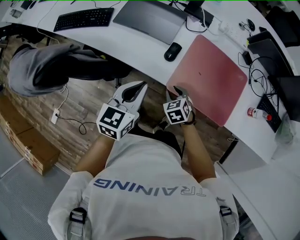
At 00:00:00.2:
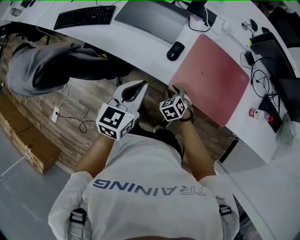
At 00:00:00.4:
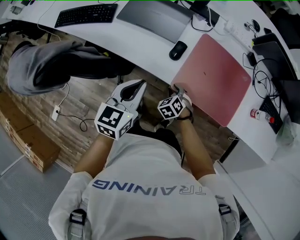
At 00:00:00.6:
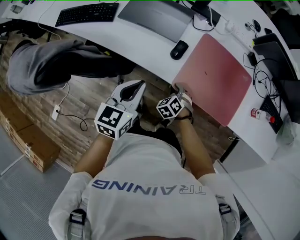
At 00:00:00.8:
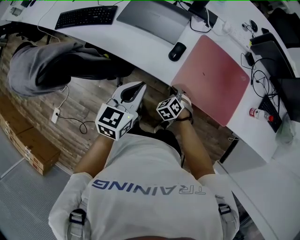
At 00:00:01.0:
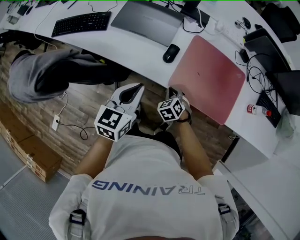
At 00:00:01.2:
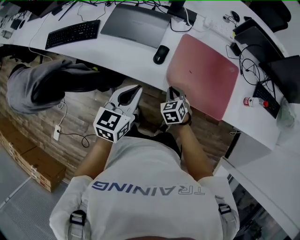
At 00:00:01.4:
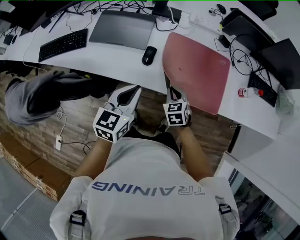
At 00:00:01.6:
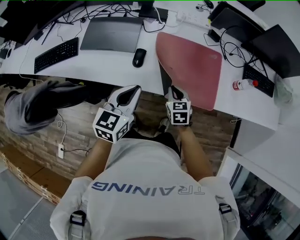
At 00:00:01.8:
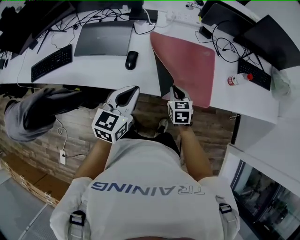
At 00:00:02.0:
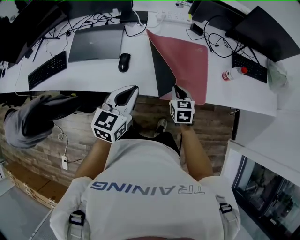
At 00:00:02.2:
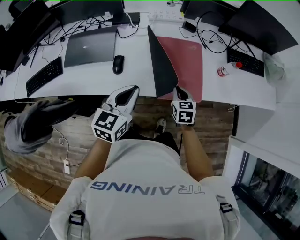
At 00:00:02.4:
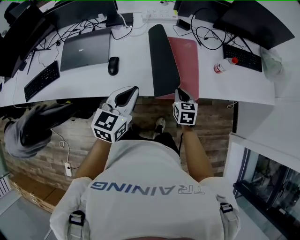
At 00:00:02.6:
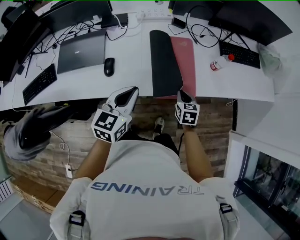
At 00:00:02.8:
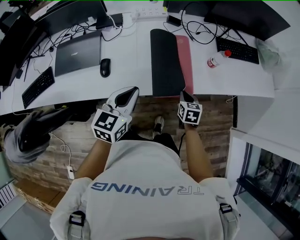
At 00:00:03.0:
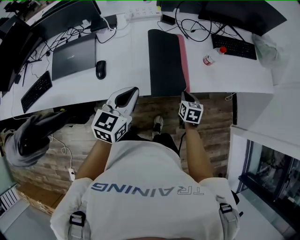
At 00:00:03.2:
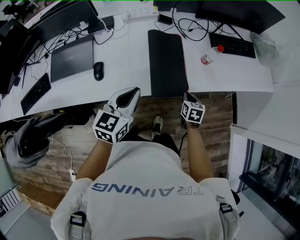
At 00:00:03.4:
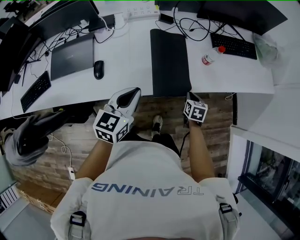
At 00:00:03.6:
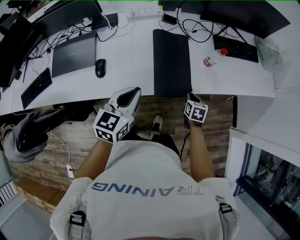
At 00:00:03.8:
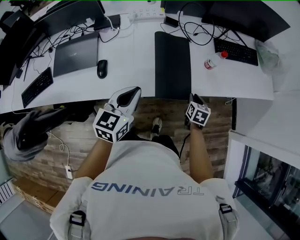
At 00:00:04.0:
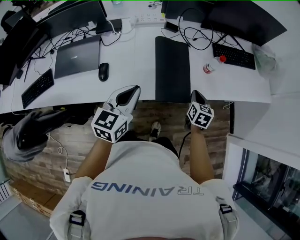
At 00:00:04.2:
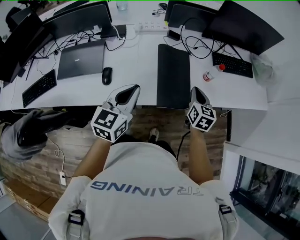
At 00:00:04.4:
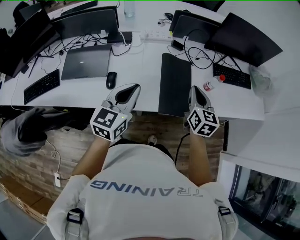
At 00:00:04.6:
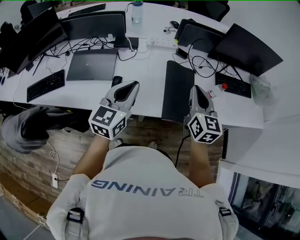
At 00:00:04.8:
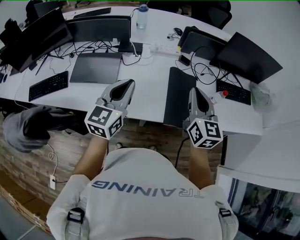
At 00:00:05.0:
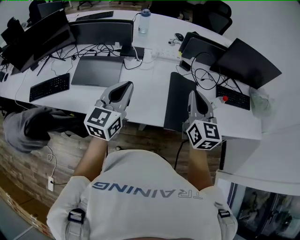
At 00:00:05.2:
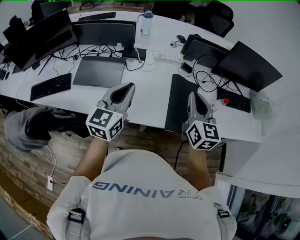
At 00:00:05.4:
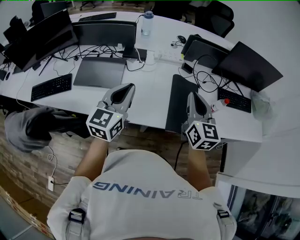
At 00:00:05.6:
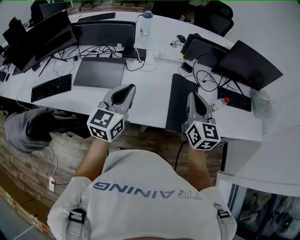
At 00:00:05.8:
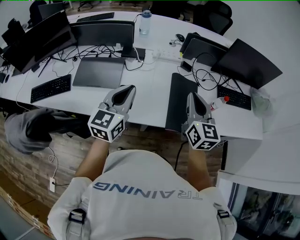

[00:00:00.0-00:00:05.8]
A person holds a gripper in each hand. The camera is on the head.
00:00:00.0 to 00:00:01.4: The two grippers go approximately 5 cm to the right. The right gripper rotates roughly 20 degrees, and closes.
00:00:01.4 to 00:00:02.8: The left gripper travels to the right by some 20 cm, while the right gripper is displaced to the right by some 30 cm, and turns by about 40 degrees.
00:00:02.8 to 00:00:04.4: The left gripper goes approximately 10 cm upward; the right gripper is displaced upward by about 20 cm, and changes its angle by roughly 30 degrees.
00:00:04.4 to 00:00:05.8: The left gripper is displaced to the left by approximately 10 cm. The right gripper goes about 15 cm to the left and upward.

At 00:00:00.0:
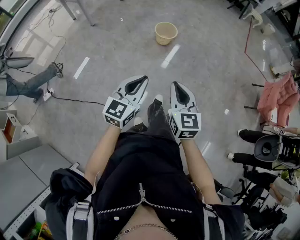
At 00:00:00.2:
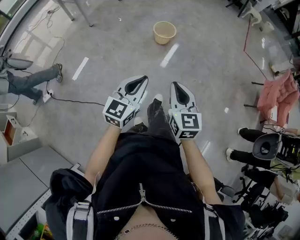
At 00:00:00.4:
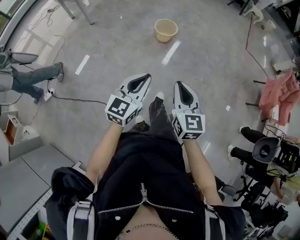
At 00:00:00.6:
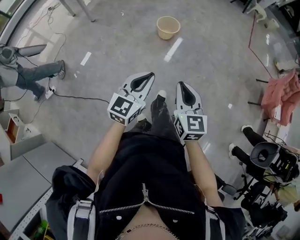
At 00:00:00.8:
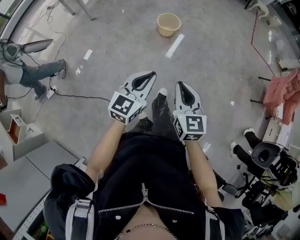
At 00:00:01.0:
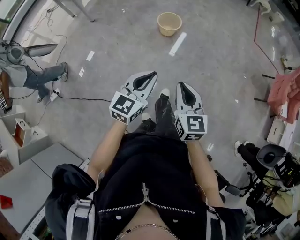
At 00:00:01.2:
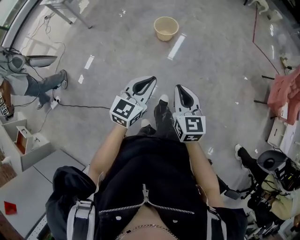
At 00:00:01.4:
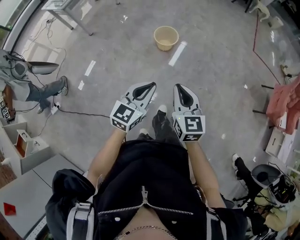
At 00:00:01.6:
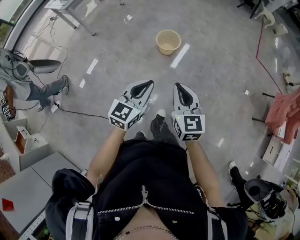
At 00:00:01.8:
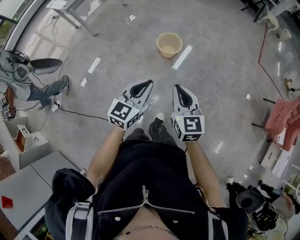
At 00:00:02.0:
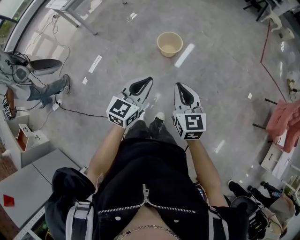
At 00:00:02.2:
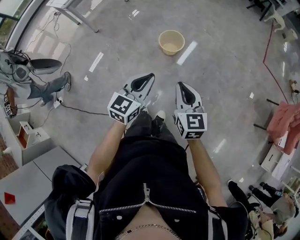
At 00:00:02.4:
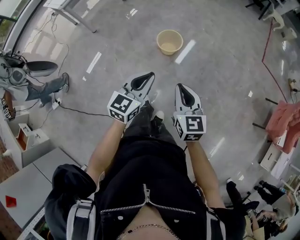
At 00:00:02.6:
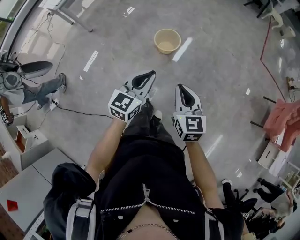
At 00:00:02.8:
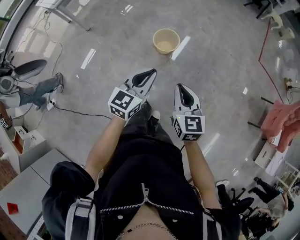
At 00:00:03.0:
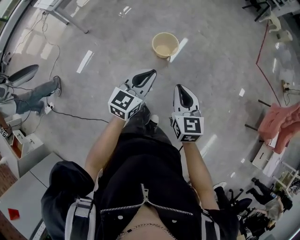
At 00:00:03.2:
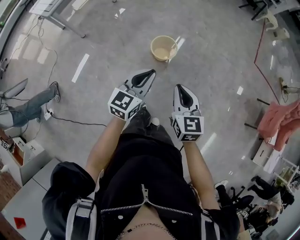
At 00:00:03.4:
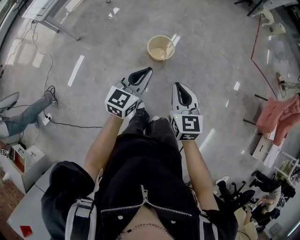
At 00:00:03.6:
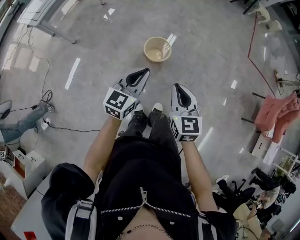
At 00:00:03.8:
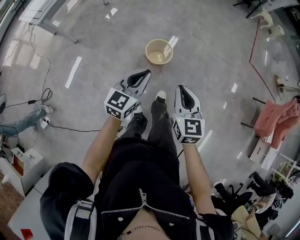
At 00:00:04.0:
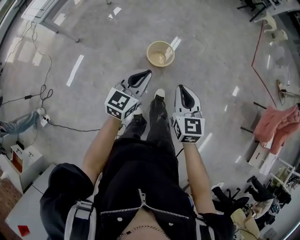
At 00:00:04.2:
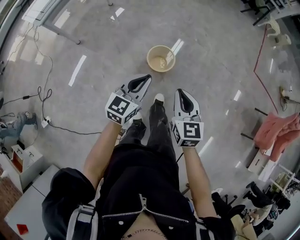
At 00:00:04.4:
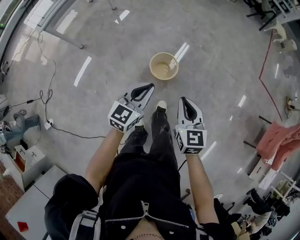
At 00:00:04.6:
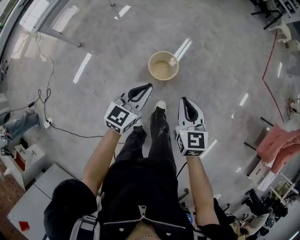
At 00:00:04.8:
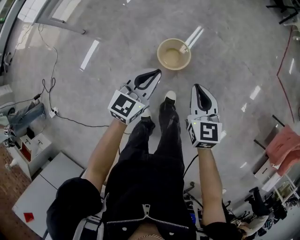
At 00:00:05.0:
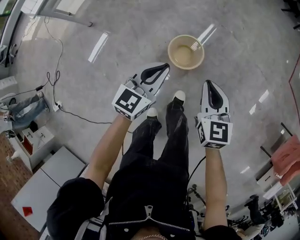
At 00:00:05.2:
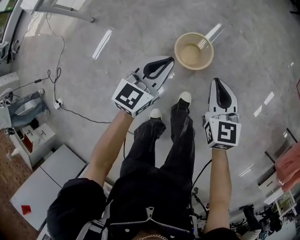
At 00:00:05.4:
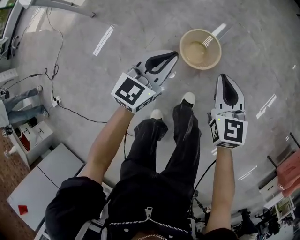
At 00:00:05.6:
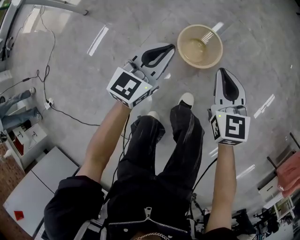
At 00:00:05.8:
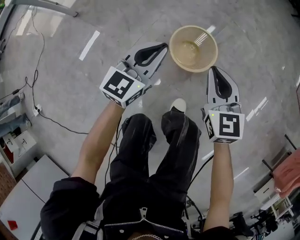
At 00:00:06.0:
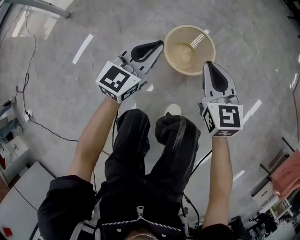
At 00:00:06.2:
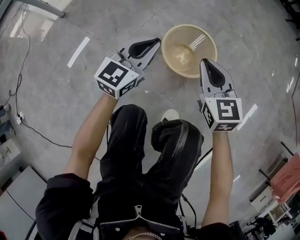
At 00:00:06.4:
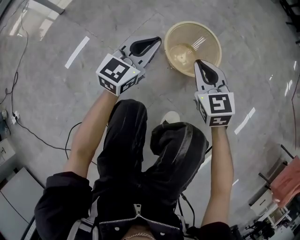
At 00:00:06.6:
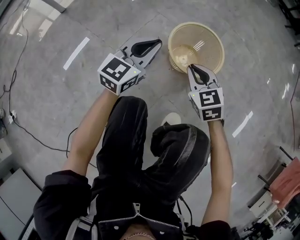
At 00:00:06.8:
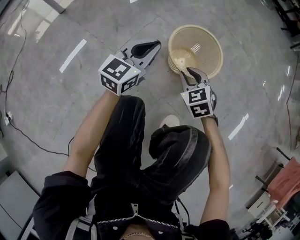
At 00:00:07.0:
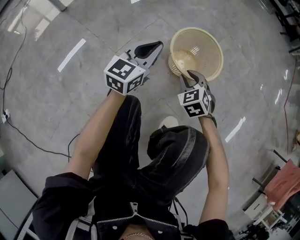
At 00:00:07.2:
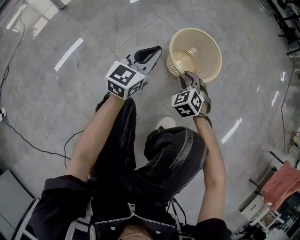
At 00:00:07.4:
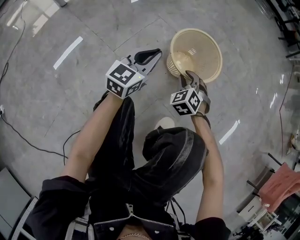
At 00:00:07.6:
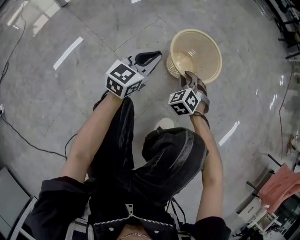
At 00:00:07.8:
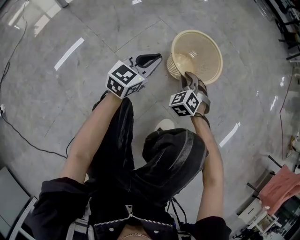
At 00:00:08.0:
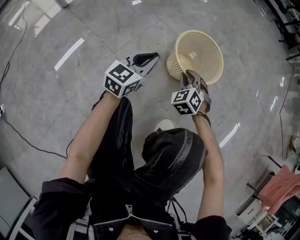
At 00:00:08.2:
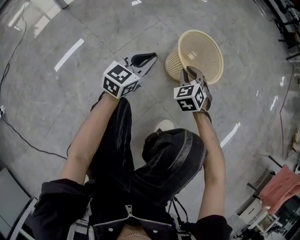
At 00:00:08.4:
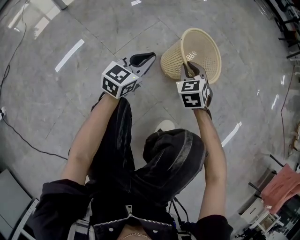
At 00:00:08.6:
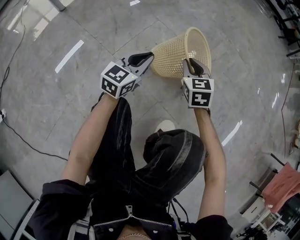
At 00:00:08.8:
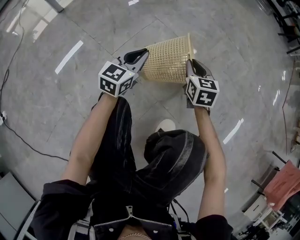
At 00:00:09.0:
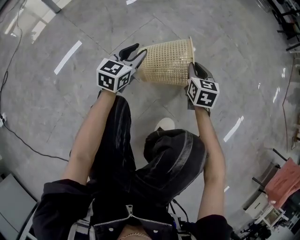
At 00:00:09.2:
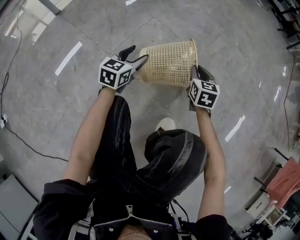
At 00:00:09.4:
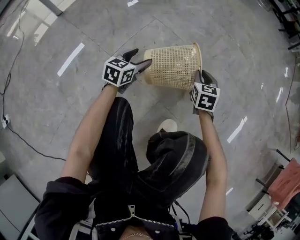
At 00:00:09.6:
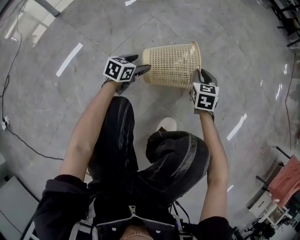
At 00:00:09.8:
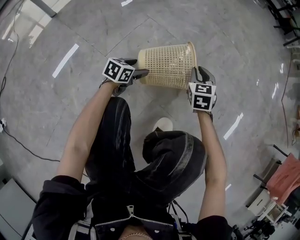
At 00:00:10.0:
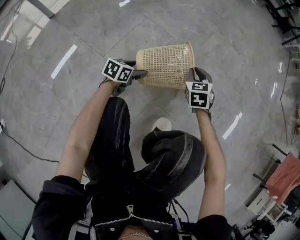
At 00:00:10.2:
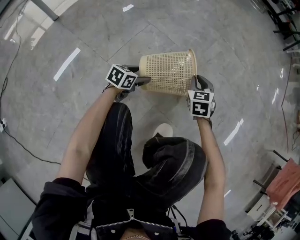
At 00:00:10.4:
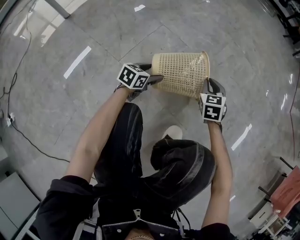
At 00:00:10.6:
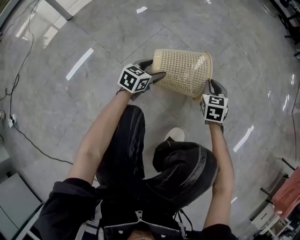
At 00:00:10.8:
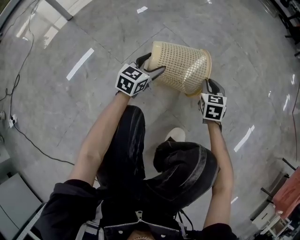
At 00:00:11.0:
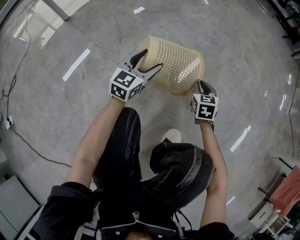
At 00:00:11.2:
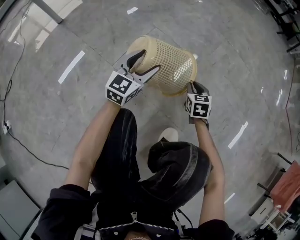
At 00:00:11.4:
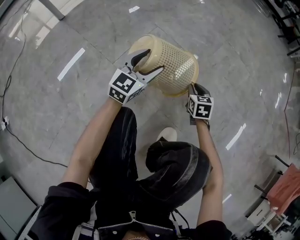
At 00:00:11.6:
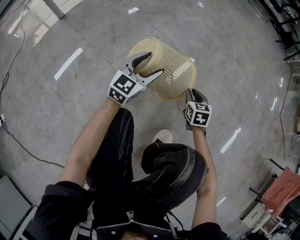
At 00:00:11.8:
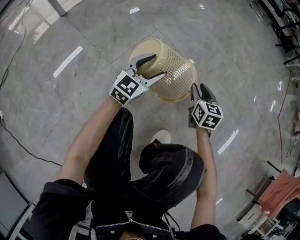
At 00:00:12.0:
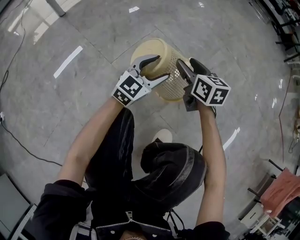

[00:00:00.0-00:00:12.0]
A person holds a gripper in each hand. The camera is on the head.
00:00:00.0 to 00:00:01.6: The two grippers go roughly 25 cm forward.
00:00:01.6 to 00:00:03.0: The grippers both shift forward by about 20 cm.
00:00:03.0 to 00:00:04.4: The two grippers go approximately 20 cm forward.
00:00:04.4 to 00:00:06.0: Both grippers move downward, approximately 40 cm.
00:00:06.0 to 00:00:07.6: The right gripper goes some 30 cm downward, and twists approximately 50 degrees counterclockwise, seen from behind. The left gripper moves downward, about 20 cm.
00:00:07.6 to 00:00:09.0: The right gripper is displaced forward by some 5 cm, and rolls clockwise, seen from behind, by roughly 50 degrees. The left gripper changes place by about 5 cm, and opens up.
00:00:09.0 to 00:00:10.4: The right gripper travels to the right by roughly 5 cm. Meanwhile the left gripper shifts some 15 cm downward and to the right, rotates about 30 degrees, and opens.
00:00:10.4 to 00:00:12.0: The right gripper goes some 15 cm to the left and upward, swivels some 40 degrees, and opens, while the left gripper heads upward, covering about 15 cm, and turns by about 40 degrees.

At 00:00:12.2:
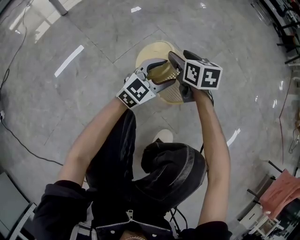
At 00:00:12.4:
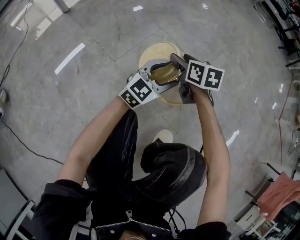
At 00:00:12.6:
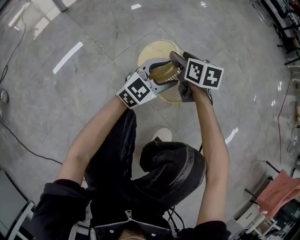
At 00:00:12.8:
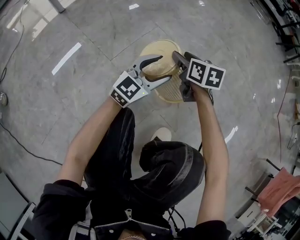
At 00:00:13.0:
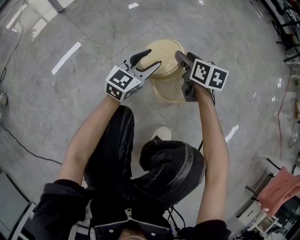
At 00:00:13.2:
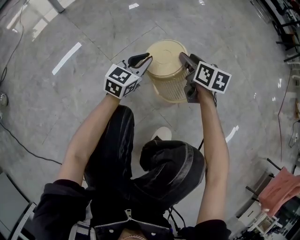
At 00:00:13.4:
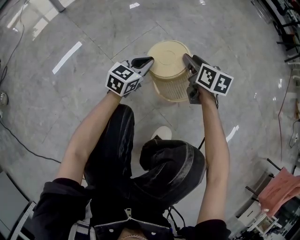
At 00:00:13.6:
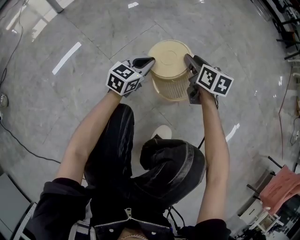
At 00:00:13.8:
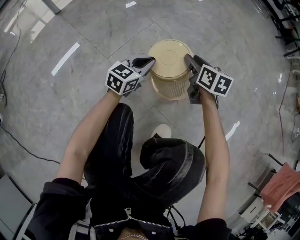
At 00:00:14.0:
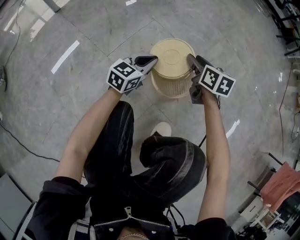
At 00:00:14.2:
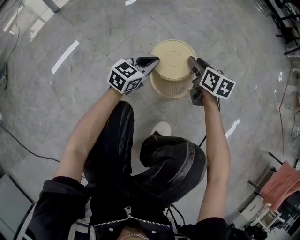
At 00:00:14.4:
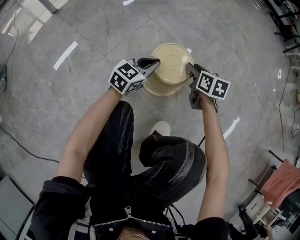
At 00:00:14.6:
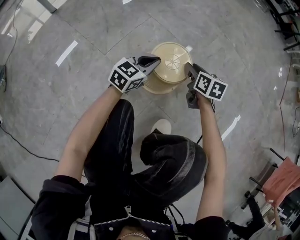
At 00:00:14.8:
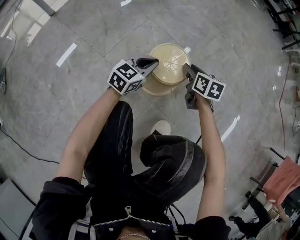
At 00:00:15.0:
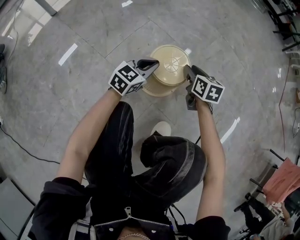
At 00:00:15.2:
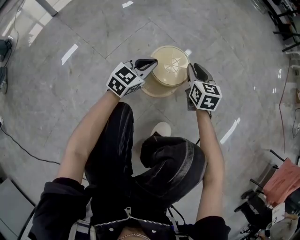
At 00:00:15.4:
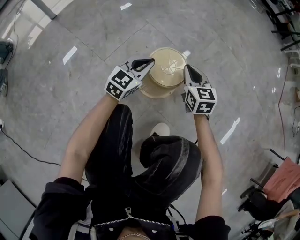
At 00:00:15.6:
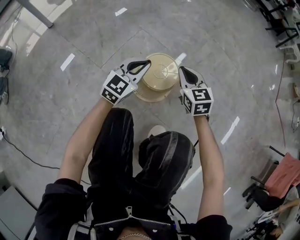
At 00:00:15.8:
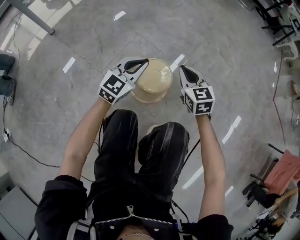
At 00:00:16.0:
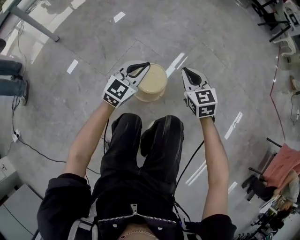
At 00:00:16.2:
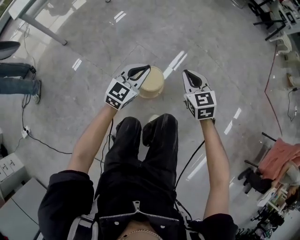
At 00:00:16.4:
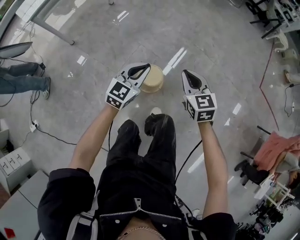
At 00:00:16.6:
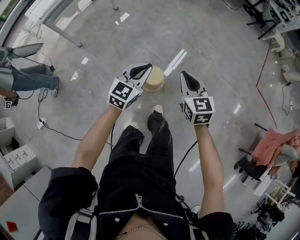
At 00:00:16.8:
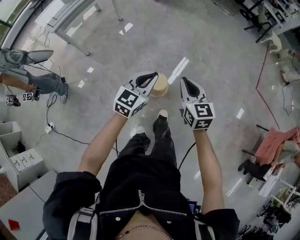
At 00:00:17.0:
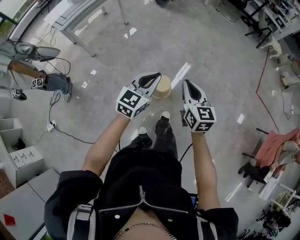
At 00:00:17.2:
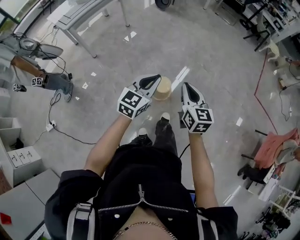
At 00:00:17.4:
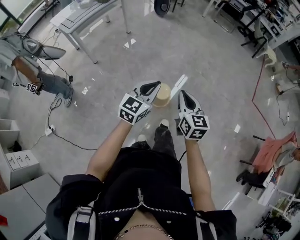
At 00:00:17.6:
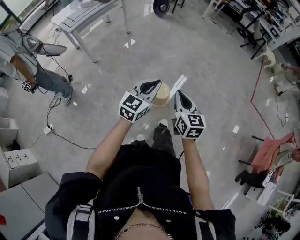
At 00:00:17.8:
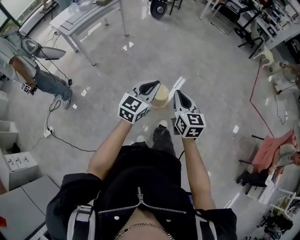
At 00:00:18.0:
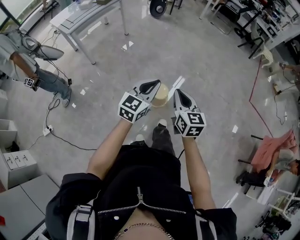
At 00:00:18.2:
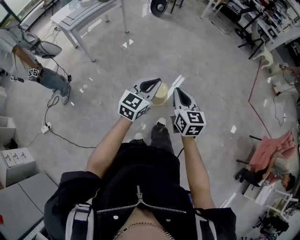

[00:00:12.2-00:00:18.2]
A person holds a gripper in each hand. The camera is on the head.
00:00:12.2 to 00:00:13.8: The right gripper shifts approximately 10 cm to the right; the left gripper travels downward by roughly 5 cm, changes its angle by about 20 degrees, and closes its fingers.
00:00:13.8 to 00:00:15.2: The right gripper closes.
00:00:15.2 to 00:00:16.6: Both grippers travel together upward, roughly 70 cm. The right gripper closes.
00:00:16.6 to 00:00:18.2: The left gripper travels backward and upward by approximately 20 cm, while the right gripper shifts about 20 cm backward, upward and to the left.
